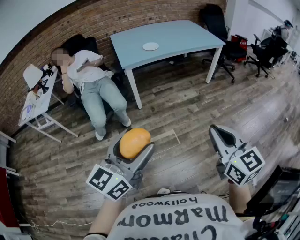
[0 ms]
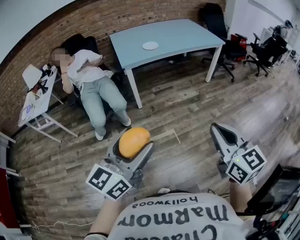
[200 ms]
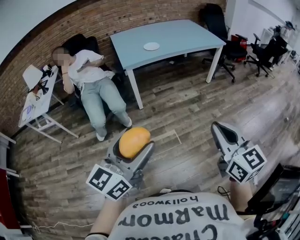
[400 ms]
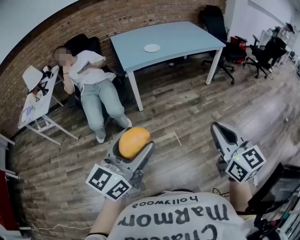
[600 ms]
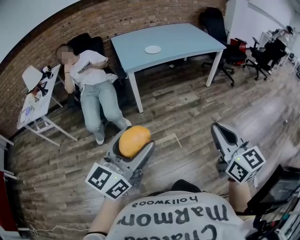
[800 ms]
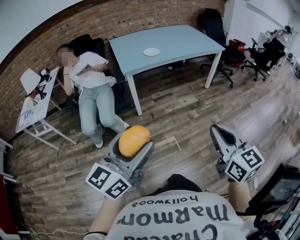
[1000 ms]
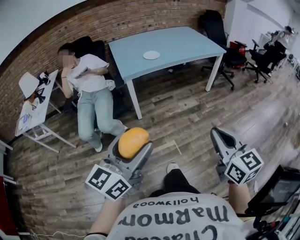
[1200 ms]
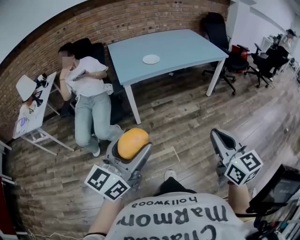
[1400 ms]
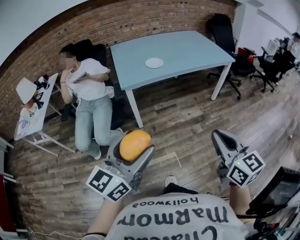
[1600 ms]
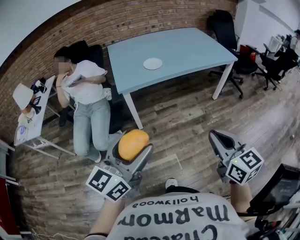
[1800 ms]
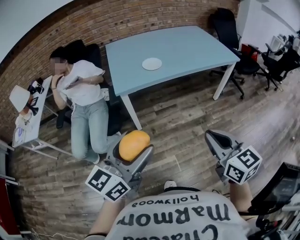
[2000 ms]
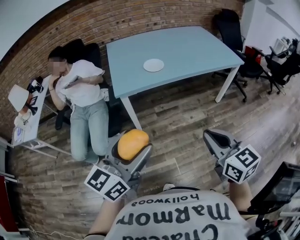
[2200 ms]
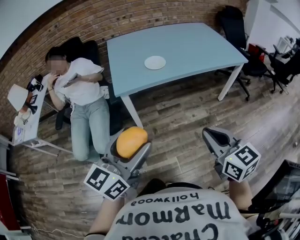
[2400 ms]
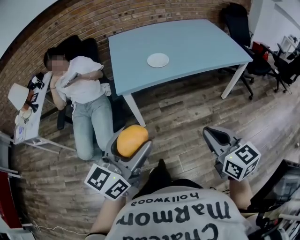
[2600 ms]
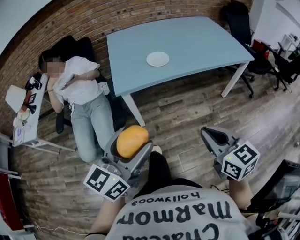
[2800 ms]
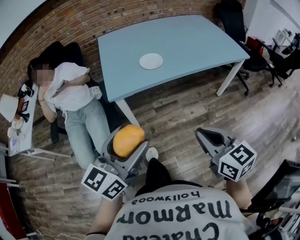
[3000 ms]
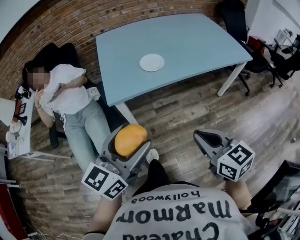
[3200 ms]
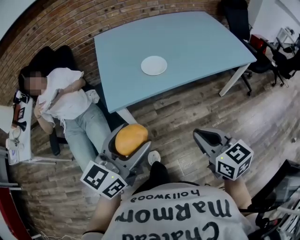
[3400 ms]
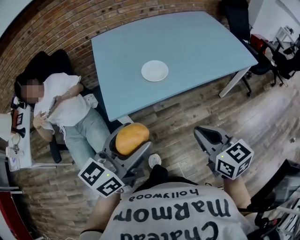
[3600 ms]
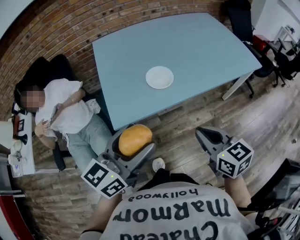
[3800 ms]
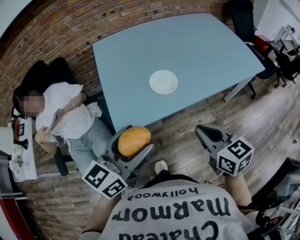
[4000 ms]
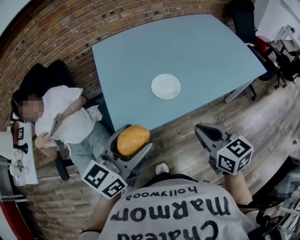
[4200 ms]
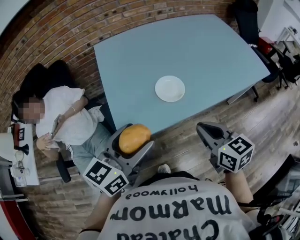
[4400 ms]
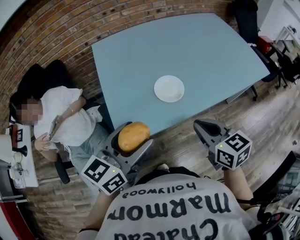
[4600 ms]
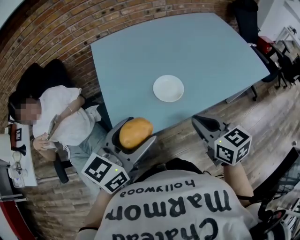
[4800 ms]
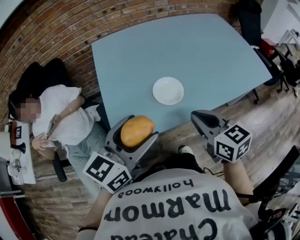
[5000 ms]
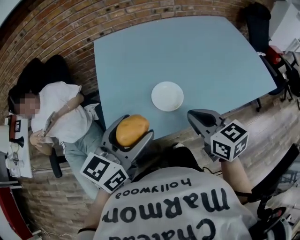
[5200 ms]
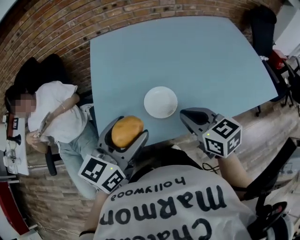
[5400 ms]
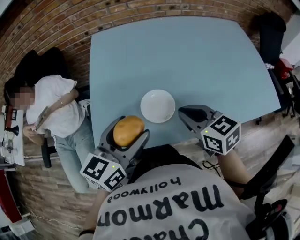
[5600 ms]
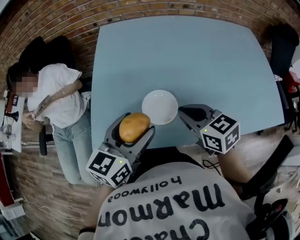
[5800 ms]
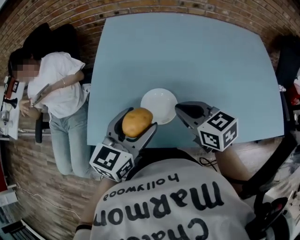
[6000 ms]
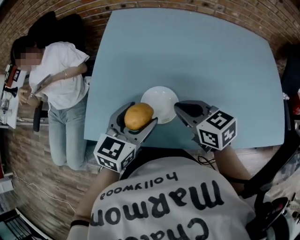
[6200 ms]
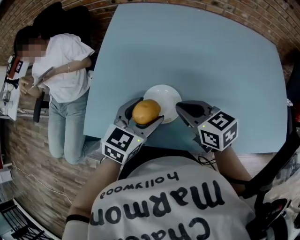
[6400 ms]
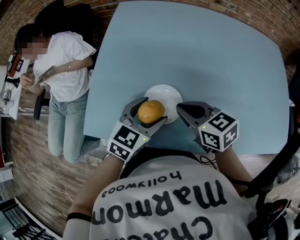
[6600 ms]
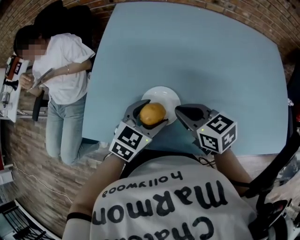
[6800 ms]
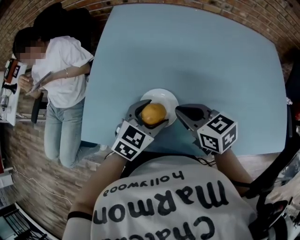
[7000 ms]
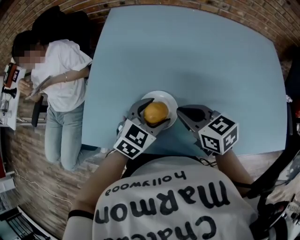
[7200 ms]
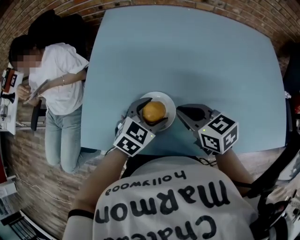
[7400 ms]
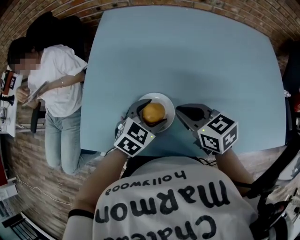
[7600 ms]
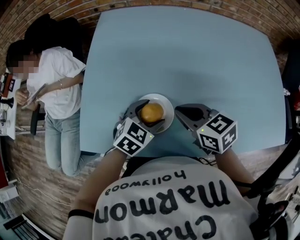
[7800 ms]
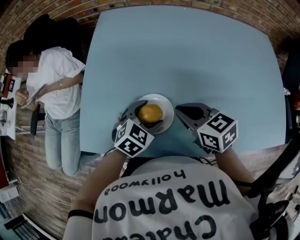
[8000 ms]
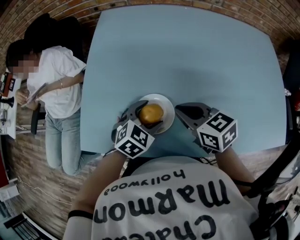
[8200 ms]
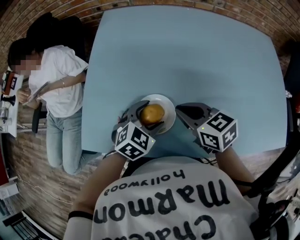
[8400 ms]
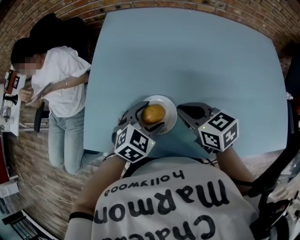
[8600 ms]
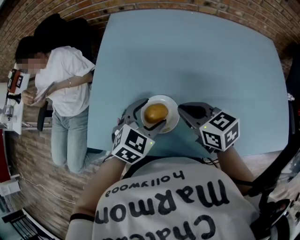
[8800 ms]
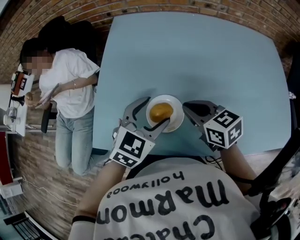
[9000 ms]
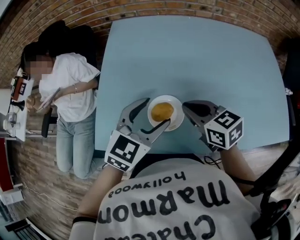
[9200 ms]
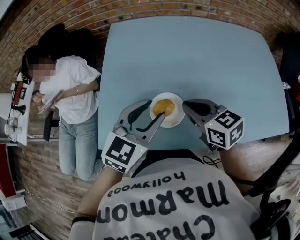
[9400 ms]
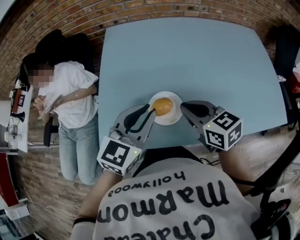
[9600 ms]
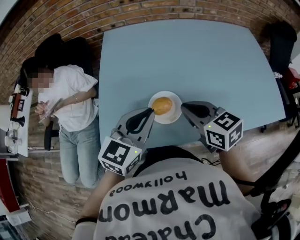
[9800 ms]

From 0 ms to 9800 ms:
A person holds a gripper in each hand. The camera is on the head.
From 0 ms to 1400 ms: The grippers both shift forward by roughly 15 cm.
From 1400 ms to 2800 ms: Both grippers move forward, some 30 cm.
From 2800 ms to 4200 ms: Both grippers move forward, about 30 cm.
From 4200 ms to 5600 ms: The right gripper is displaced forward by approximately 20 cm, and turns by some 20 degrees. The left gripper heads forward and to the right, covering some 20 cm.
From 5600 ms to 7000 ms: The right gripper shifts some 10 cm downward and forward, while the left gripper goes approximately 20 cm downward, to the right and forward, and changes its angle by some 30 degrees.
From 7000 ms to 8400 ms: There are only small adjustments of the grippers.
From 8400 ms to 9800 ms: The left gripper shifts approximately 20 cm upward and to the left, changes its angle by approximately 30 degrees, and closes. Meanwhile the right gripper is displaced upward and backward by some 10 cm.

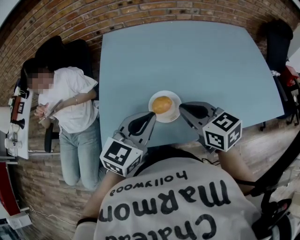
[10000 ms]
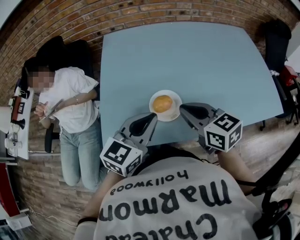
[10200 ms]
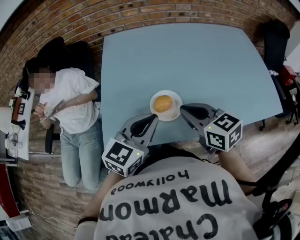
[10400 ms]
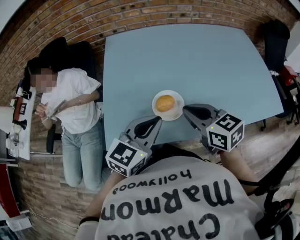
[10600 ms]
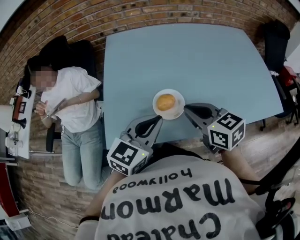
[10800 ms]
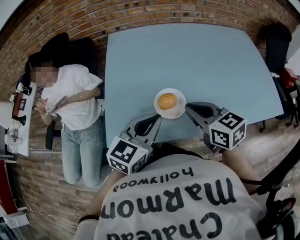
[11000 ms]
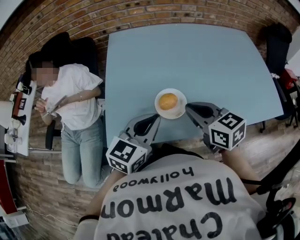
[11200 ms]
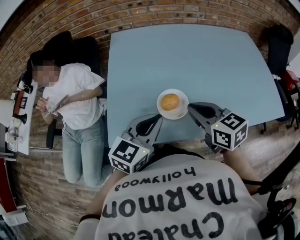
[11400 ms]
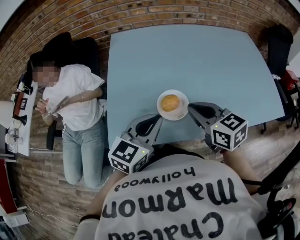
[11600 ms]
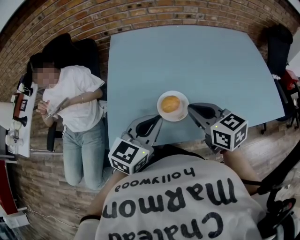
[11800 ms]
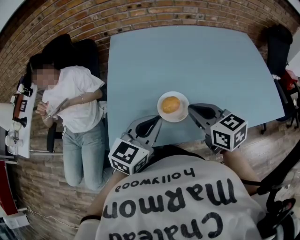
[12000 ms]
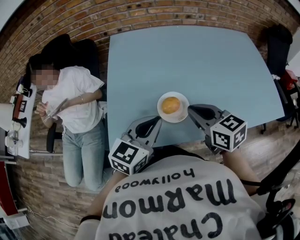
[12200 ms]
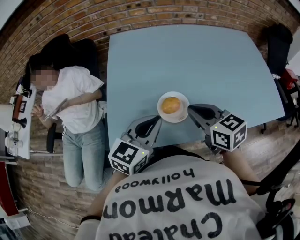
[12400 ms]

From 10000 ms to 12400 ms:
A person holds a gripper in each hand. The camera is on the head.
From 10000 ms to 12400 ms: The grippers move only a little.

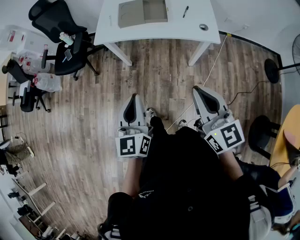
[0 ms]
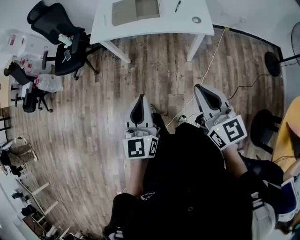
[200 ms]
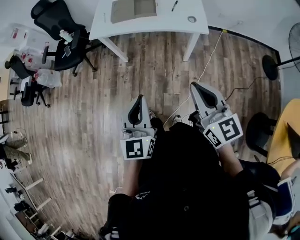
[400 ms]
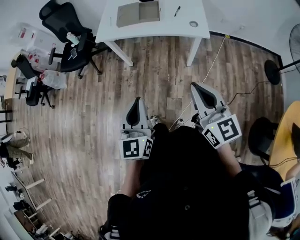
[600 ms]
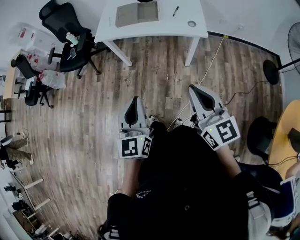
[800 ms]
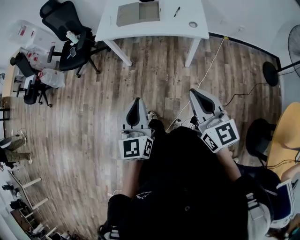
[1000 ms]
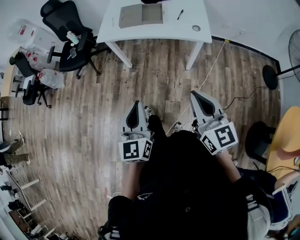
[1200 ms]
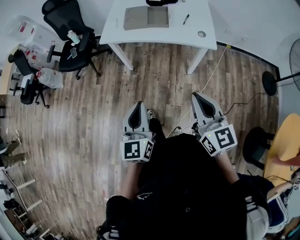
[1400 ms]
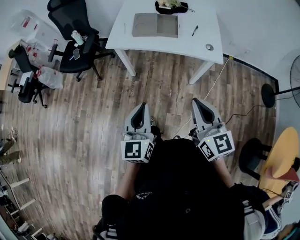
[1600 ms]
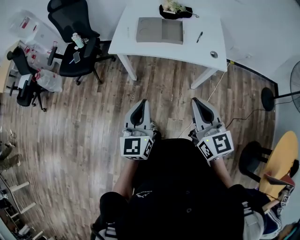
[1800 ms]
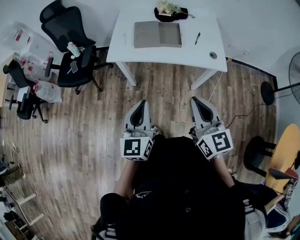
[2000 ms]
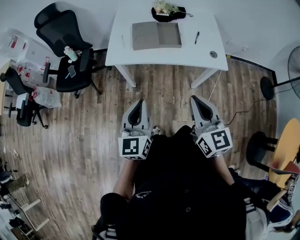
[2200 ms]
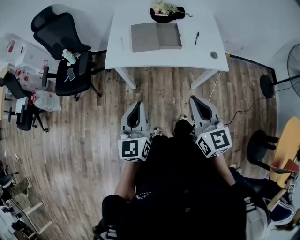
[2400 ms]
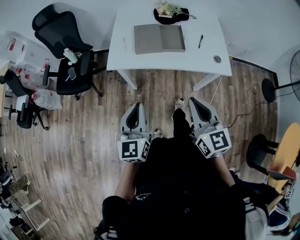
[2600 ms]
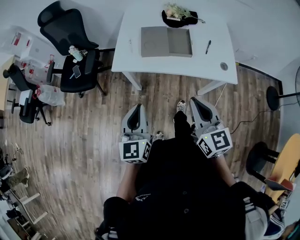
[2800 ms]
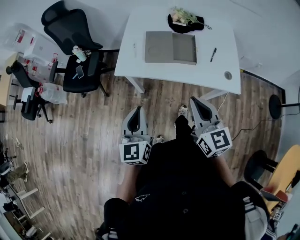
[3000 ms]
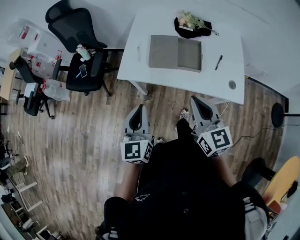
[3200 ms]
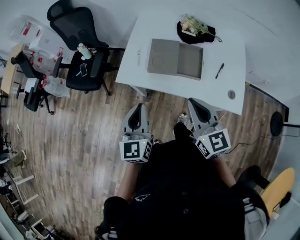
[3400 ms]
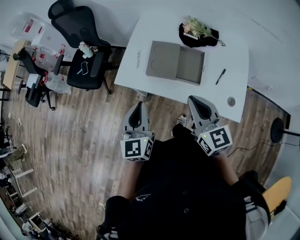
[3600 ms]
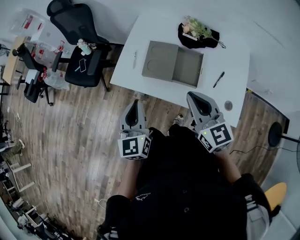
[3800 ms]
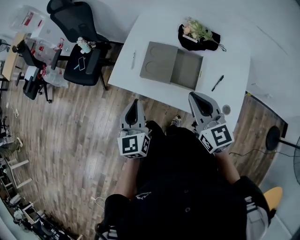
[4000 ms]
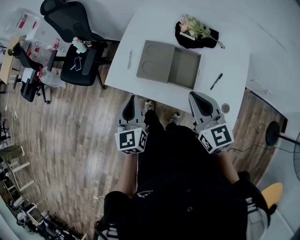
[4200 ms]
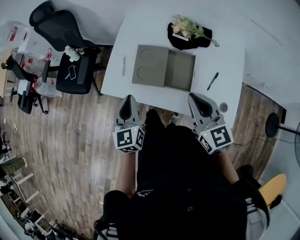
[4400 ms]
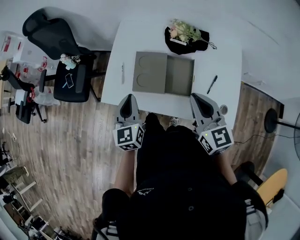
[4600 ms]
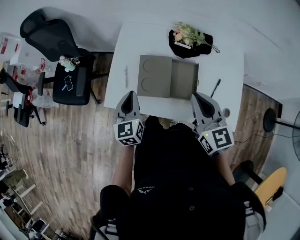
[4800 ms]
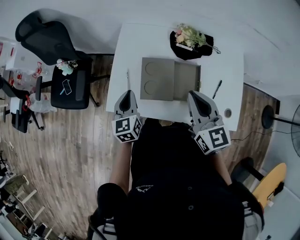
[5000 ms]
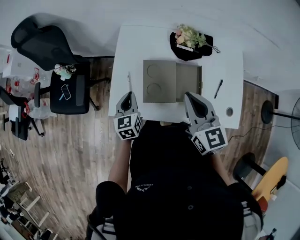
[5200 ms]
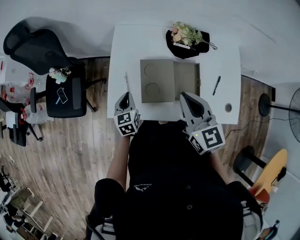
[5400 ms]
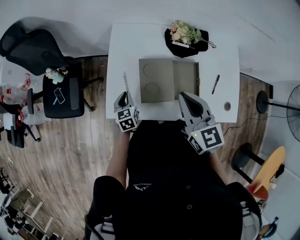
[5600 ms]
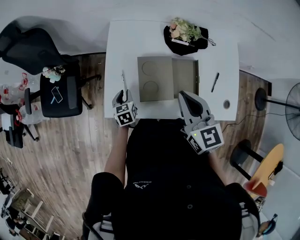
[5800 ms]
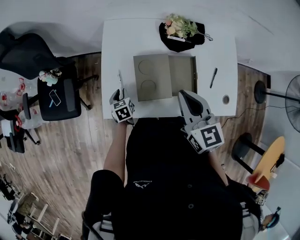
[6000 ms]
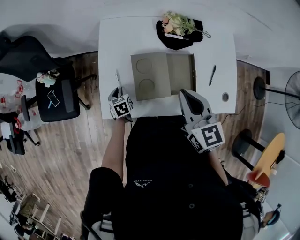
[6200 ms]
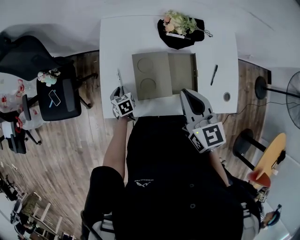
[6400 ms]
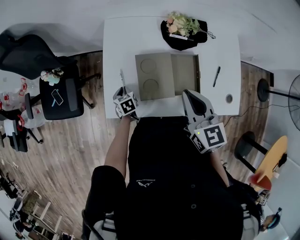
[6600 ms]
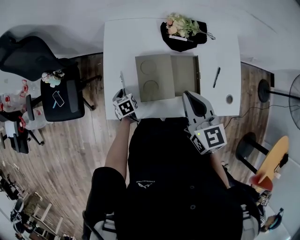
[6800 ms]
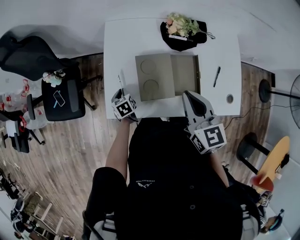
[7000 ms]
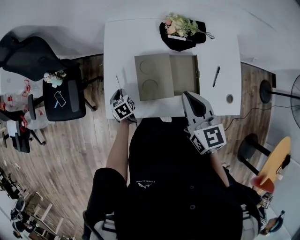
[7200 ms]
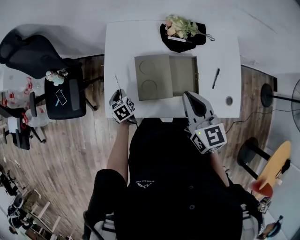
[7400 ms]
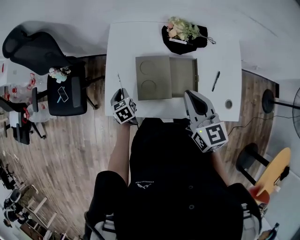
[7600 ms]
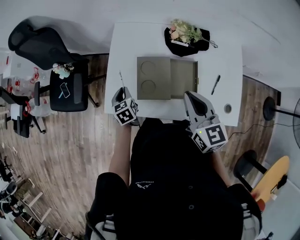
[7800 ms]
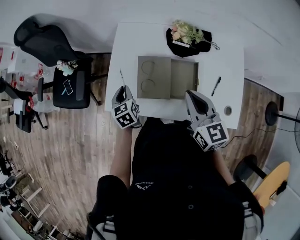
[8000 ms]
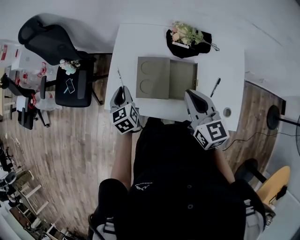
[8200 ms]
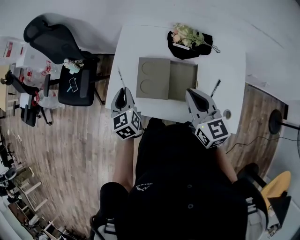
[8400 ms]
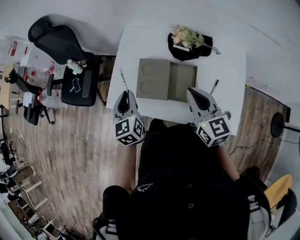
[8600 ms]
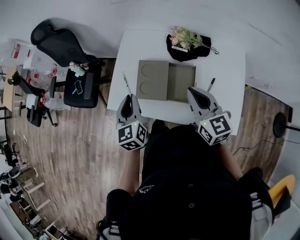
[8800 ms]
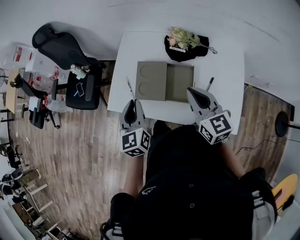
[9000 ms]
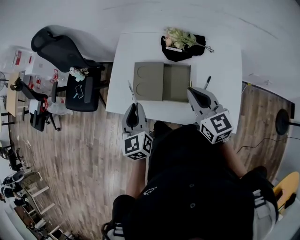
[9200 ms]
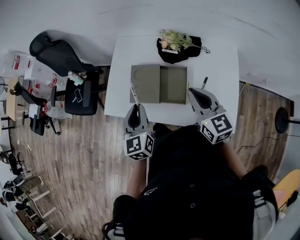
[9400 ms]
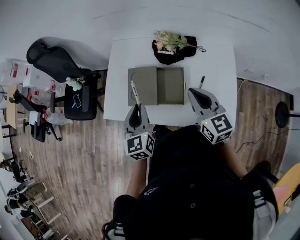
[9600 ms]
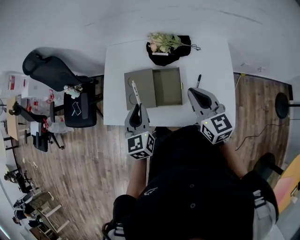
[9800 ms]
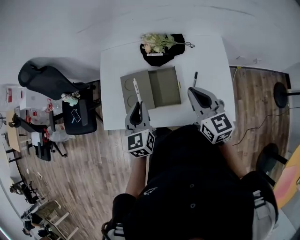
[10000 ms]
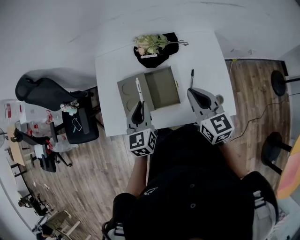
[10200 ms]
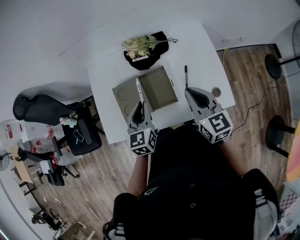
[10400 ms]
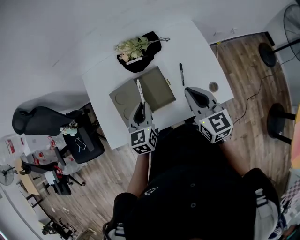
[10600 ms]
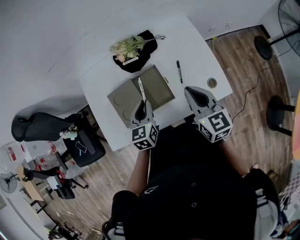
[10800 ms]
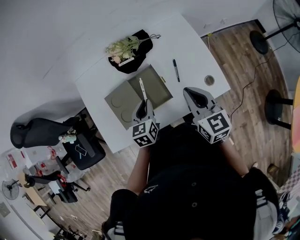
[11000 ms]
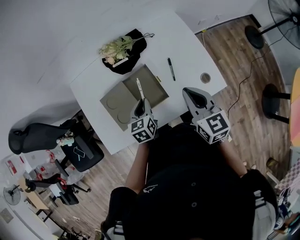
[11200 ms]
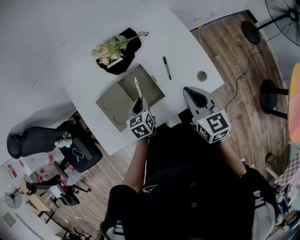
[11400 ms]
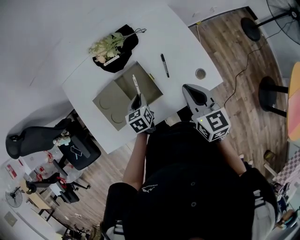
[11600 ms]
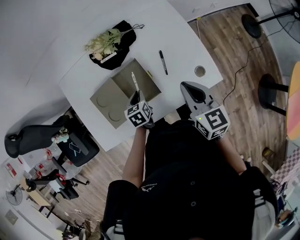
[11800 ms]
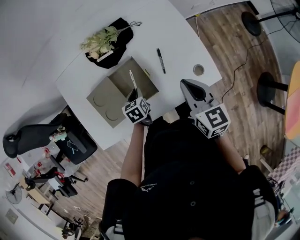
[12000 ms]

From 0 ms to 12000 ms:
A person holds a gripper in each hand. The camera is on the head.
From 0 ms to 1600 ms: The right gripper travels backward and back again, some 15 cm each way, while the left gripper travels backward and back again, some 15 cm each way.
From 1600 ms to 3000 ms: The two grippers go about 25 cm forward.
From 3000 ms to 4400 ms: Both grippers move forward and to the right, about 25 cm.
From 4400 ms to 6000 ms: The left gripper is displaced downward and forward by approximately 35 cm, and angles its fingers downward, by approximately 30 degrees, while the right gripper shifts about 20 cm forward and to the left.
From 6000 ms to 7600 ms: The left gripper is displaced upward by some 5 cm. The right gripper travels to the right by about 5 cm.
From 7600 ms to 9000 ms: The left gripper goes roughly 30 cm upward, backward and to the right, and swivels some 30 degrees, while the right gripper travels to the right by roughly 10 cm.
From 9000 ms to 10400 ms: The left gripper moves about 15 cm, and rotates roughly 30 degrees; the right gripper changes place by about 10 cm, and swivels roughly 30 degrees.
From 10400 ms to 12000 ms: The left gripper moves downward, approximately 20 cm, and angles its fingers downward, by some 30 degrees. Meanwhile the right gripper travels to the right and downward by roughly 10 cm.
